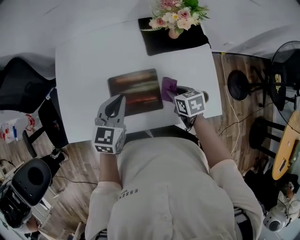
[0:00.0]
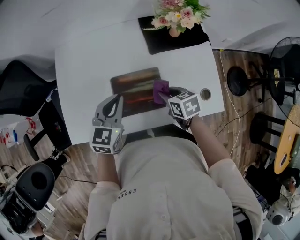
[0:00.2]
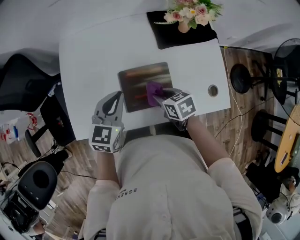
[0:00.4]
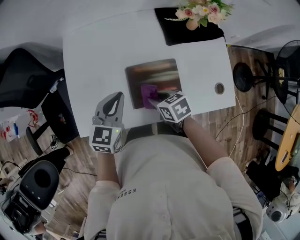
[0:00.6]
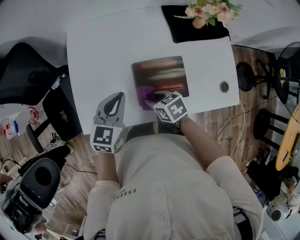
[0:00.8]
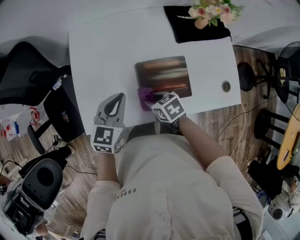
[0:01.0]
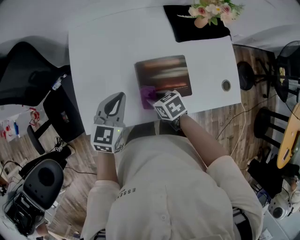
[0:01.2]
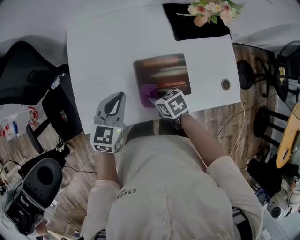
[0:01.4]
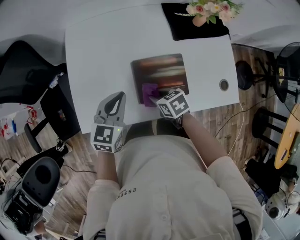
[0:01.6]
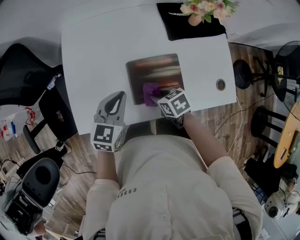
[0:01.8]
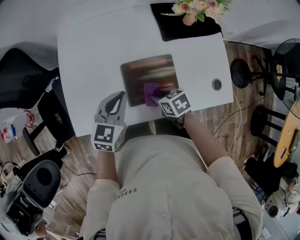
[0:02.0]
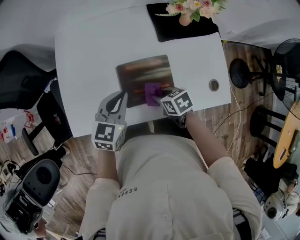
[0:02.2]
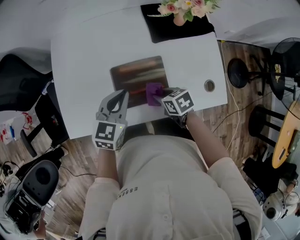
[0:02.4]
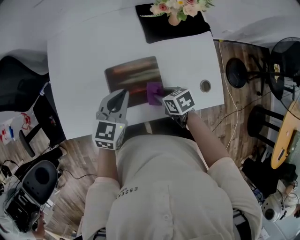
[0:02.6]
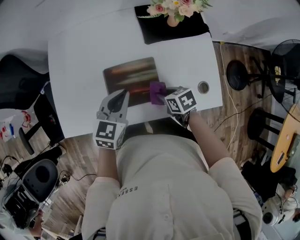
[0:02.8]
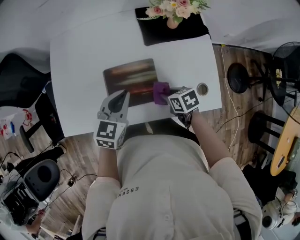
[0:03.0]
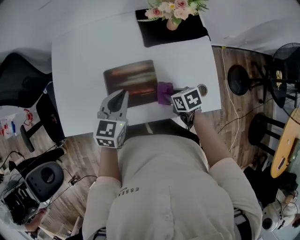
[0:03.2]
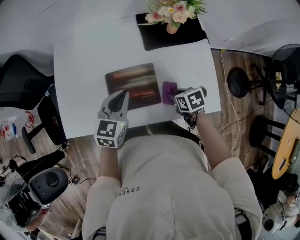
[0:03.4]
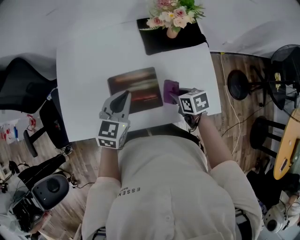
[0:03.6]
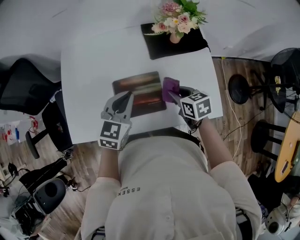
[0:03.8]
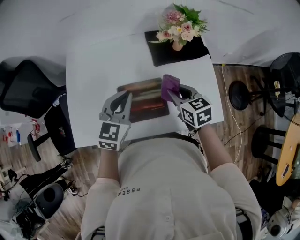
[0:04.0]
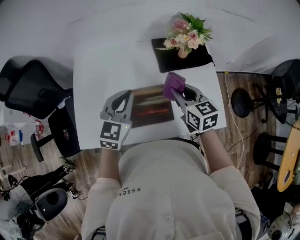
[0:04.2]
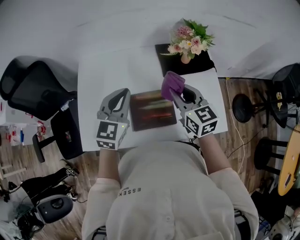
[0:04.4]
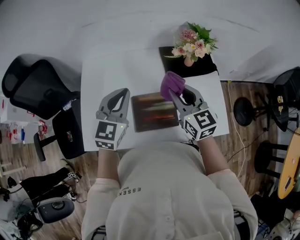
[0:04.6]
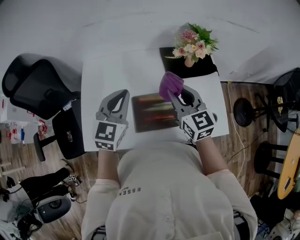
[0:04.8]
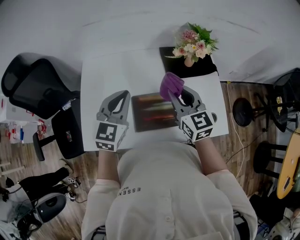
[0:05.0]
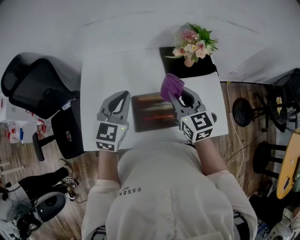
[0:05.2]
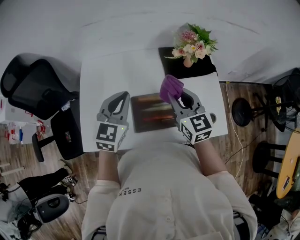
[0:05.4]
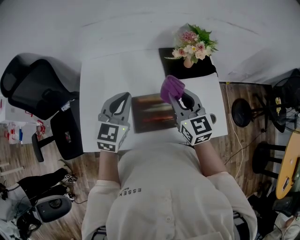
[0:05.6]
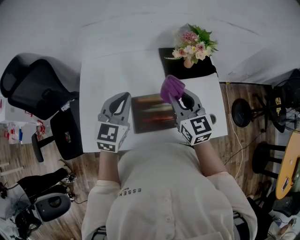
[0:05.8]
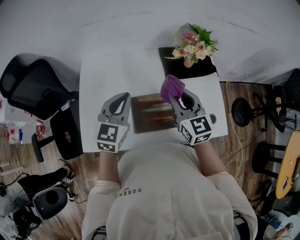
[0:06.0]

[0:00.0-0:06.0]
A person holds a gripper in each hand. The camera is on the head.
0:00.0 to 0:01.6: The right gripper is displaced to the left by some 20 cm. Meanwhile the left gripper shifts about 15 cm to the left.
0:01.6 to 0:03.0: The two grippers go some 15 cm to the right.
0:03.0 to 0:04.4: The right gripper is displaced upward and forward by roughly 25 cm, and tilts its fingers approximately 40 degrees upward, while the left gripper is displaced upward, forward and to the left by some 15 cm.
0:04.4 to 0:06.0: The grippers make only small movements.

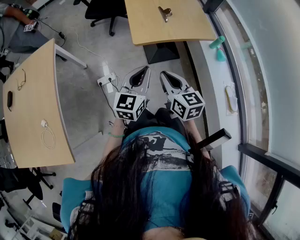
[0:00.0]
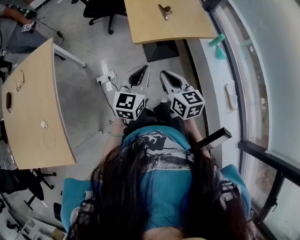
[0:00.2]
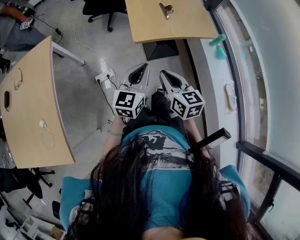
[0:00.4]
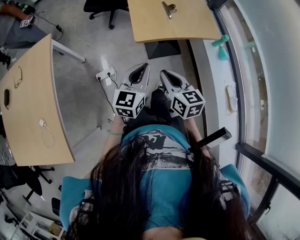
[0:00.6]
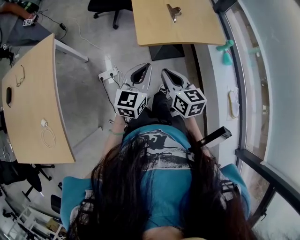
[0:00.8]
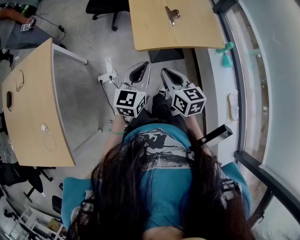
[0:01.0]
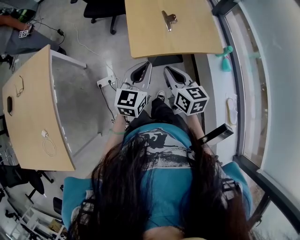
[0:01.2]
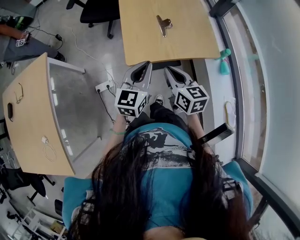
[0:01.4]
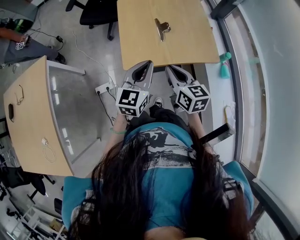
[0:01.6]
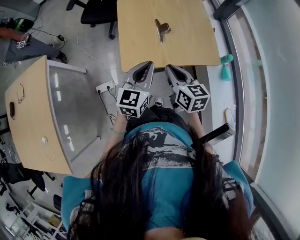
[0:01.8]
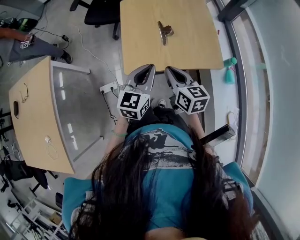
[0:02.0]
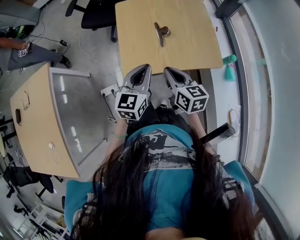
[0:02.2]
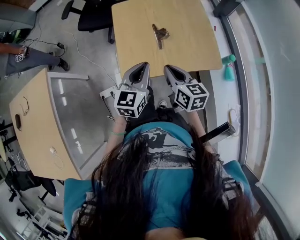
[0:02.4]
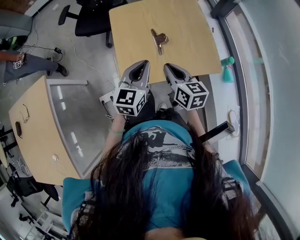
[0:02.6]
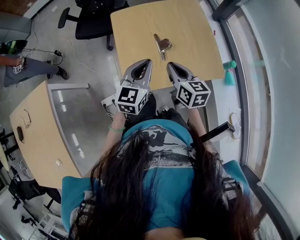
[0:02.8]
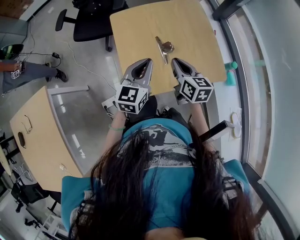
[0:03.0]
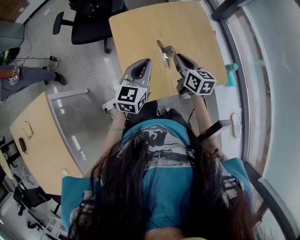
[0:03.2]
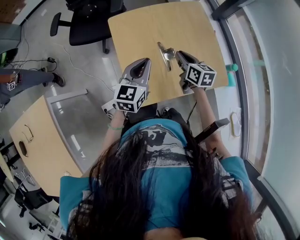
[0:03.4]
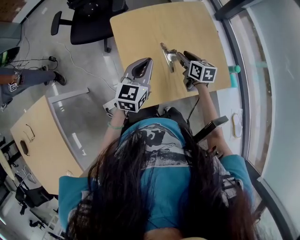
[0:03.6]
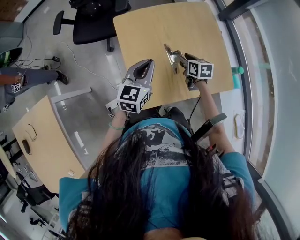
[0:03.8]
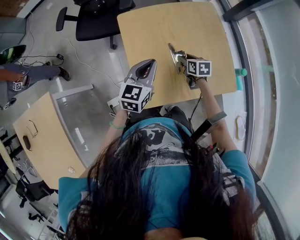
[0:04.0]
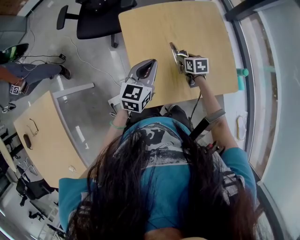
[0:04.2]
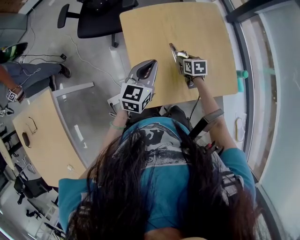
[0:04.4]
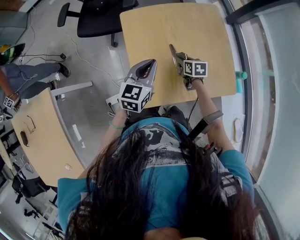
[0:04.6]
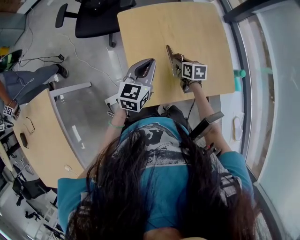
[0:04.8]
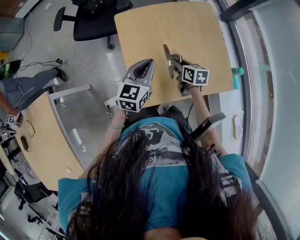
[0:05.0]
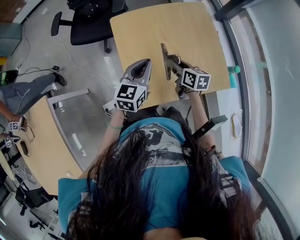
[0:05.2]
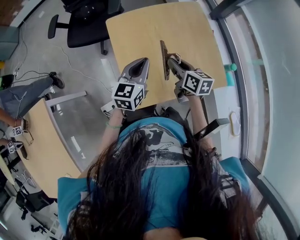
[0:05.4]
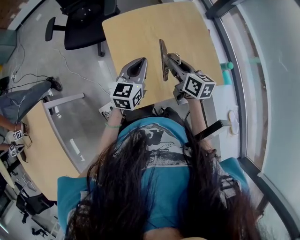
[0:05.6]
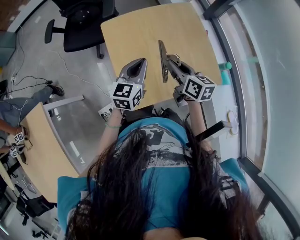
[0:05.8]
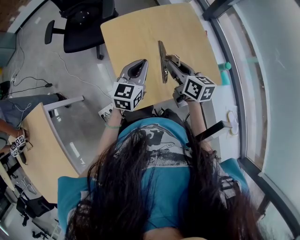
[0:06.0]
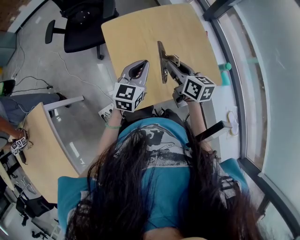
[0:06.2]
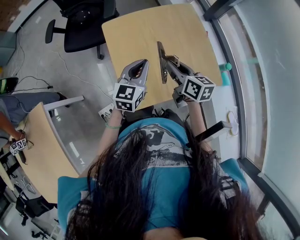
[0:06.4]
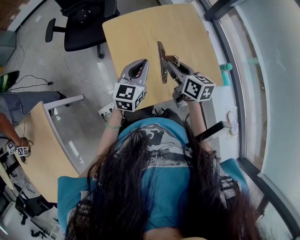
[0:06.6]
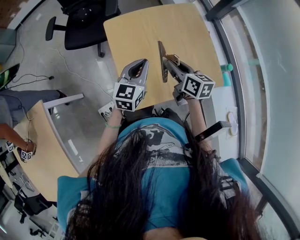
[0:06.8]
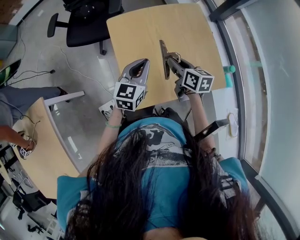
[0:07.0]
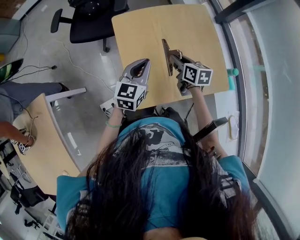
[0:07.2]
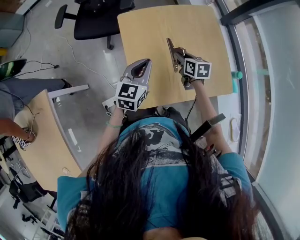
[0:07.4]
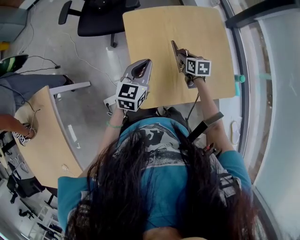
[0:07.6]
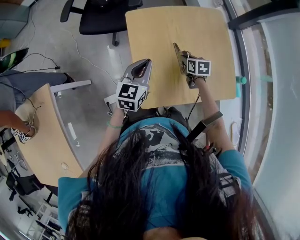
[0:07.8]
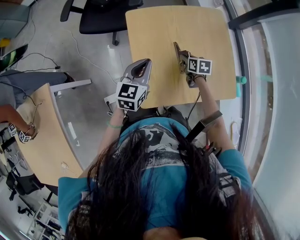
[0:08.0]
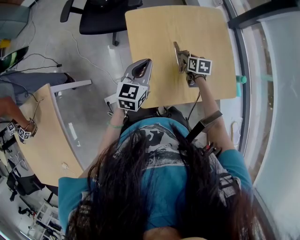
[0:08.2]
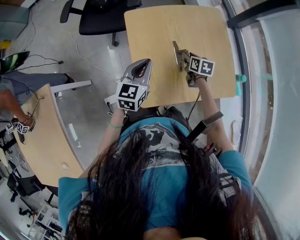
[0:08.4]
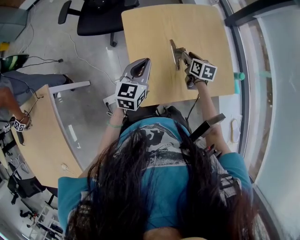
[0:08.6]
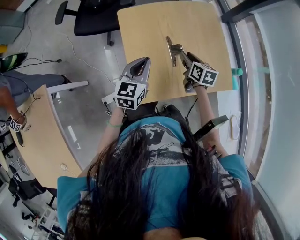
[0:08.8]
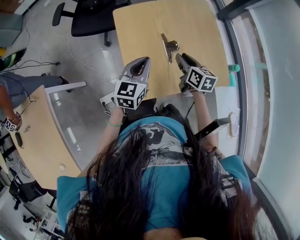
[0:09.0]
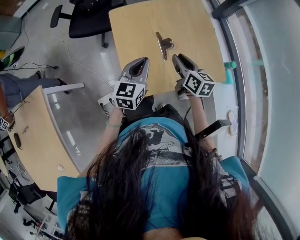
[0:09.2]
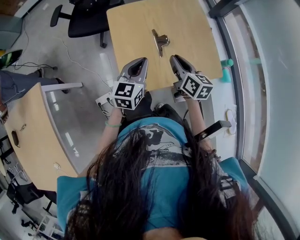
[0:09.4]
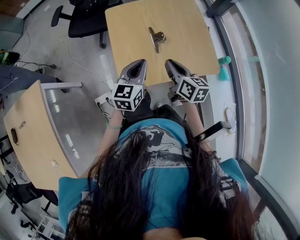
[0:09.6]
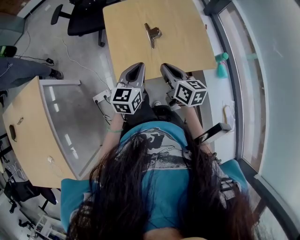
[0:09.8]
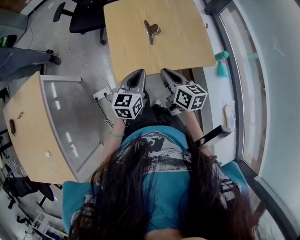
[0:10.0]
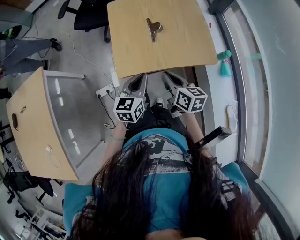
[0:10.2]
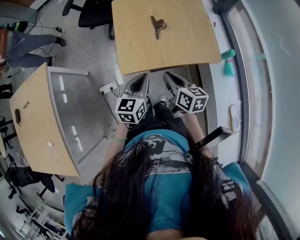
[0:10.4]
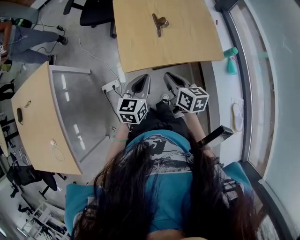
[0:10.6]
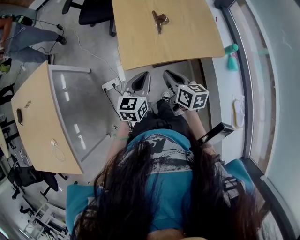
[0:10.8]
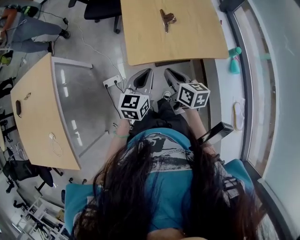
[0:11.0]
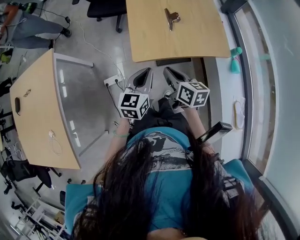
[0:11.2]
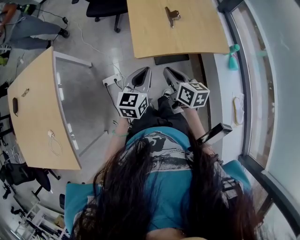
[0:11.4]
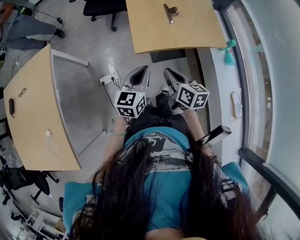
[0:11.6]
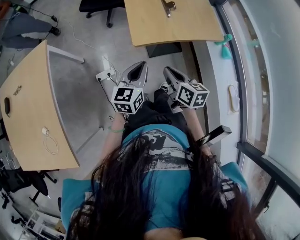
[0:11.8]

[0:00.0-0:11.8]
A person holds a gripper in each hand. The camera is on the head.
0:00.0 to 0:01.4: The grippers both shift forward by roughly 20 cm.
0:01.4 to 0:03.0: Both grippers travel together forward, approximately 25 cm.
0:03.0 to 0:04.4: The right gripper moves downward and forward, about 25 cm, rotates about 30 degrees, and opens up; the left gripper shifts some 10 cm forward.
0:04.4 to 0:06.0: The right gripper shifts about 20 cm upward, and rotates about 30 degrees.
0:06.0 to 0:07.4: The right gripper goes approximately 15 cm downward and forward, and swivels some 20 degrees; the left gripper goes about 5 cm to the left.
0:07.4 to 0:08.8: The right gripper travels downward and back again, about 5 cm each way.
0:08.8 to 0:10.4: Both grippers travel together backward, approximately 30 cm. The right gripper closes up.
0:10.4 to 0:11.8: The right gripper shifts some 20 cm backward and to the left; the left gripper moves to the left and backward, approximately 20 cm.

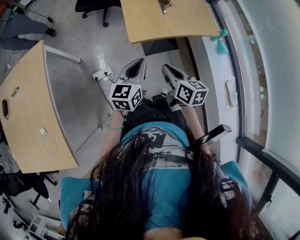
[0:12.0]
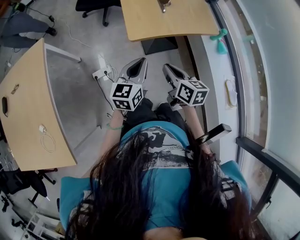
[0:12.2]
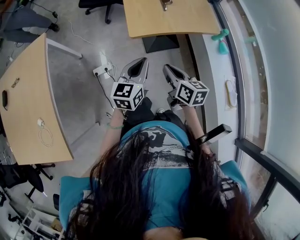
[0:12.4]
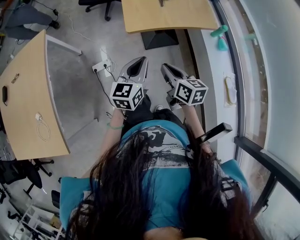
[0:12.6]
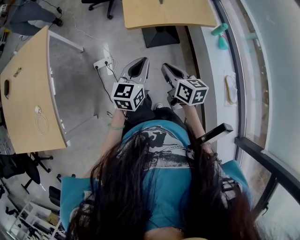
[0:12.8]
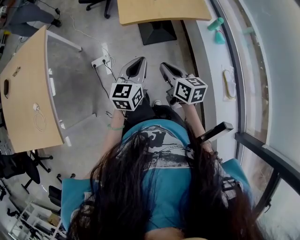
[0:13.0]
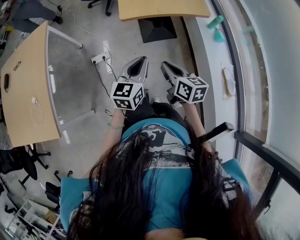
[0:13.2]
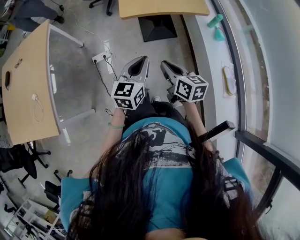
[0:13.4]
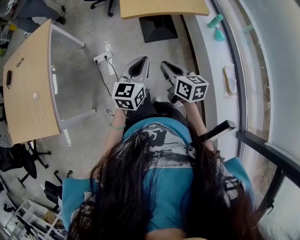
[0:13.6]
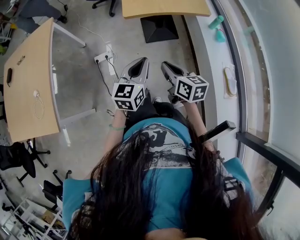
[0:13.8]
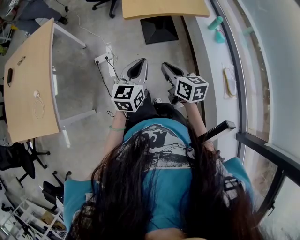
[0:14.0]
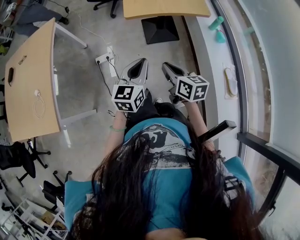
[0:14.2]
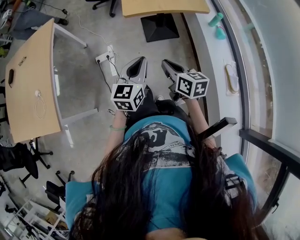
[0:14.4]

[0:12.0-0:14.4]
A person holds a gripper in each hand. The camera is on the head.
0:12.0 to 0:13.2: Both grippers travel together backward and to the right, about 20 cm.
0:13.2 to 0:14.4: The left gripper moves backward, approximately 5 cm; the right gripper changes place by about 5 cm.

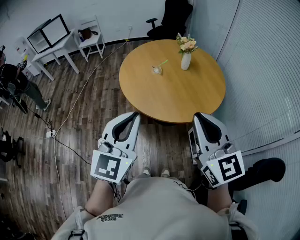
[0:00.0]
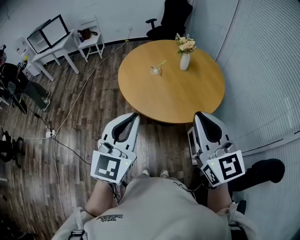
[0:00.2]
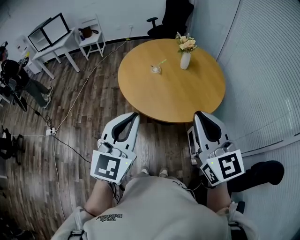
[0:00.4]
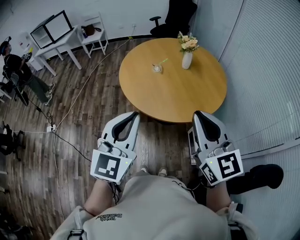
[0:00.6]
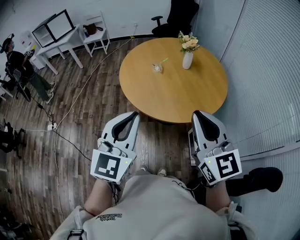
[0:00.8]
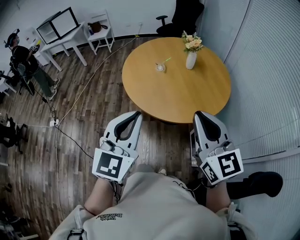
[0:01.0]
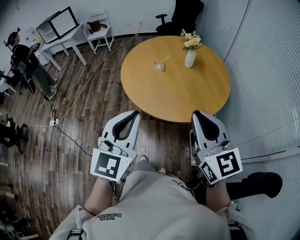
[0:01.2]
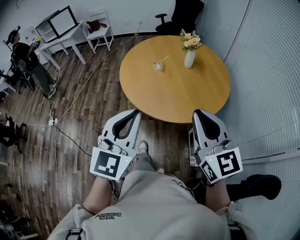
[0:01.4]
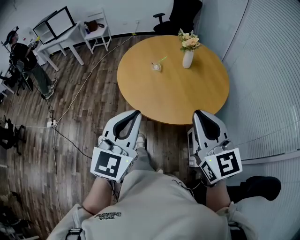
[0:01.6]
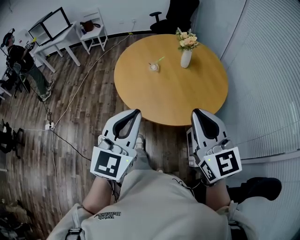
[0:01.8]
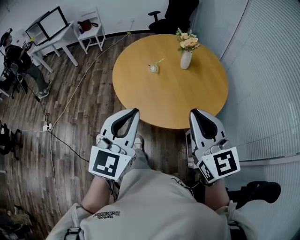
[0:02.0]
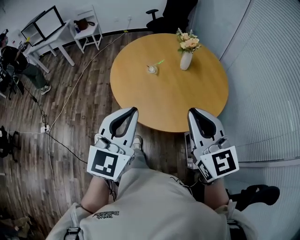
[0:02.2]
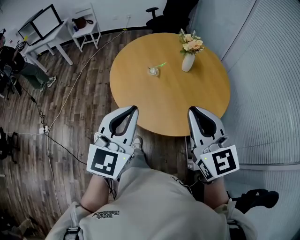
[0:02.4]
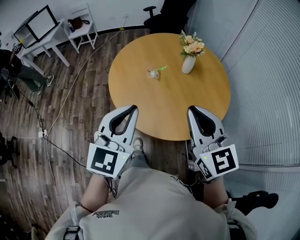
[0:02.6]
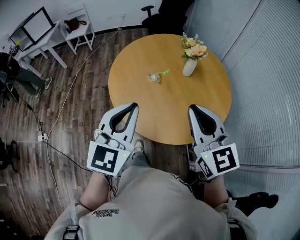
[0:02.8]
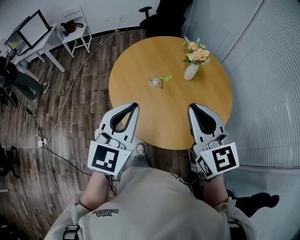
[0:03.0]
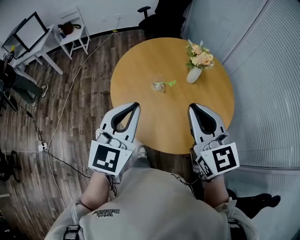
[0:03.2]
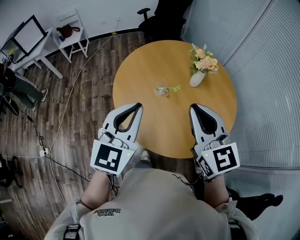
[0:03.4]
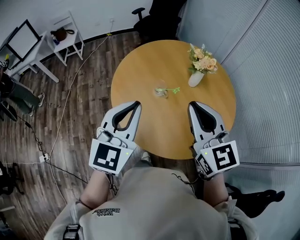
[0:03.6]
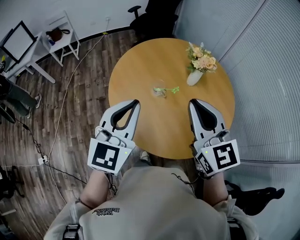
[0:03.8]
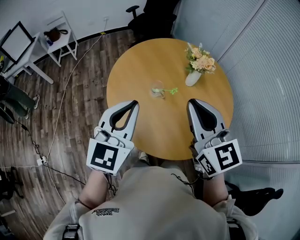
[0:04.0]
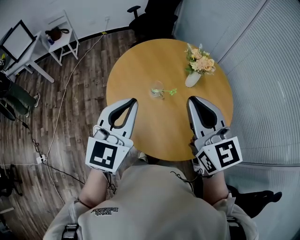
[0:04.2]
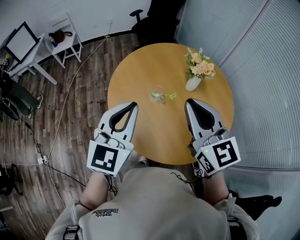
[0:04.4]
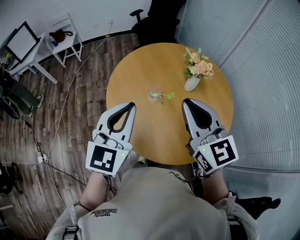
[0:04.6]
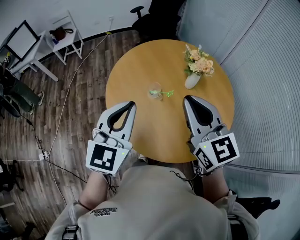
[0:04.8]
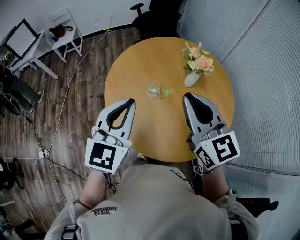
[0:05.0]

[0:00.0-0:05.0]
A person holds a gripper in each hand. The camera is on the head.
0:00.0 to 0:01.6: The left gripper shifts approximately 5 cm to the right; the right gripper heads to the right and forward, covering some 10 cm.
0:01.6 to 0:03.4: Both grippers travel together forward and to the left, approximately 35 cm.
0:03.4 to 0:05.0: The two grippers go some 5 cm forward.
